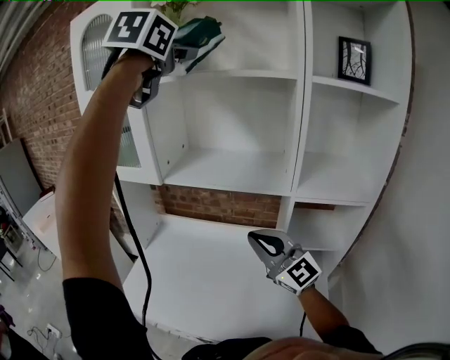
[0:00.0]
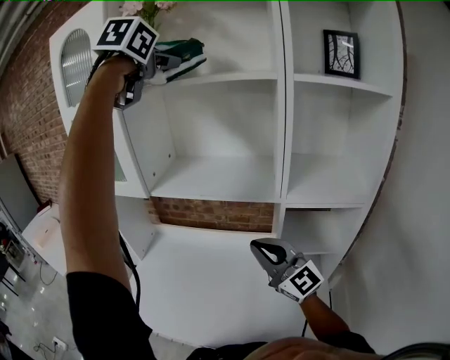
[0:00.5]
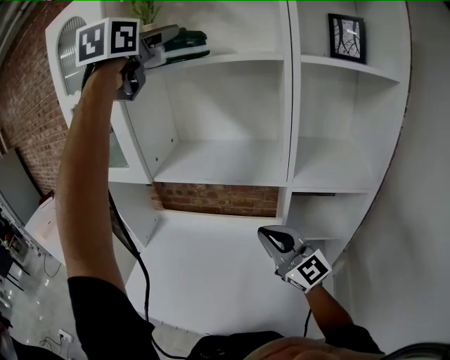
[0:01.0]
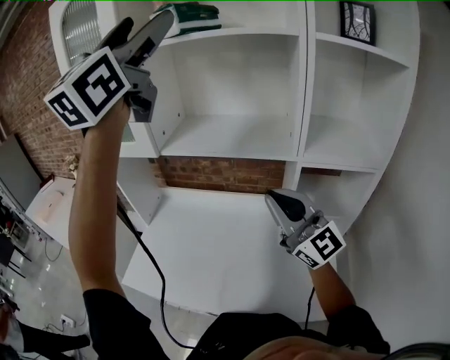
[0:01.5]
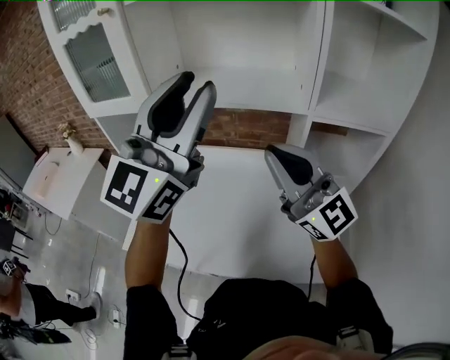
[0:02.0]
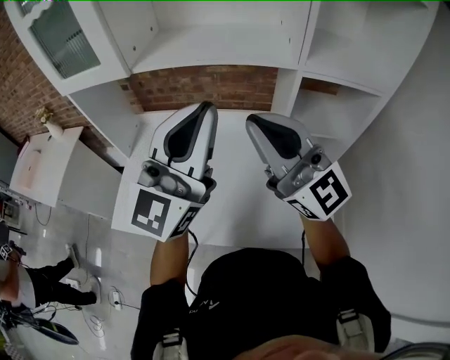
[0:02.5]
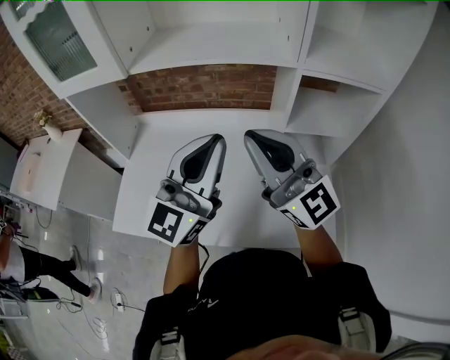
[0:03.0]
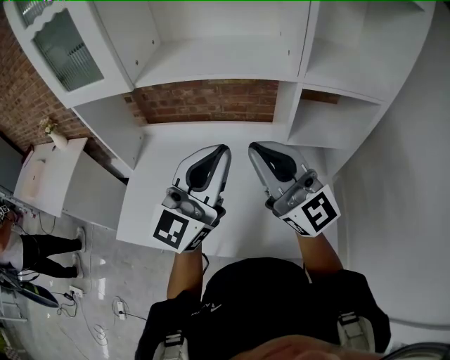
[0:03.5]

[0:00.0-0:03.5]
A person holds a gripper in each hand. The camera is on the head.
0:00.0 to 0:02.0: The right gripper travels upward by about 5 cm; the left gripper goes some 25 cm downward and backward, points its fingers some 40 degrees further upward, and opens and closes again.
0:02.0 to 0:03.5: The right gripper moves downward, roughly 5 cm. Meanwhile the left gripper shifts approximately 20 cm downward.

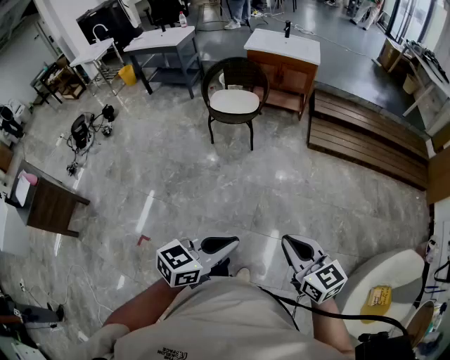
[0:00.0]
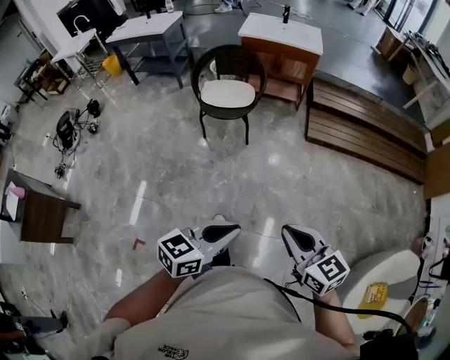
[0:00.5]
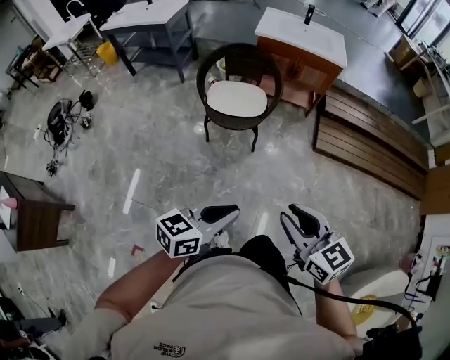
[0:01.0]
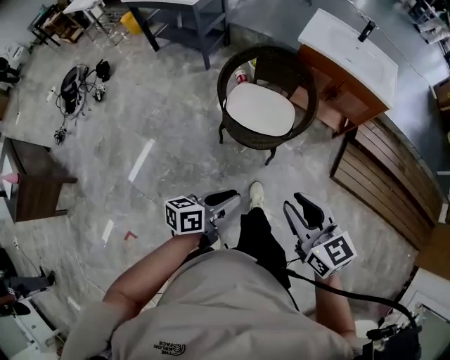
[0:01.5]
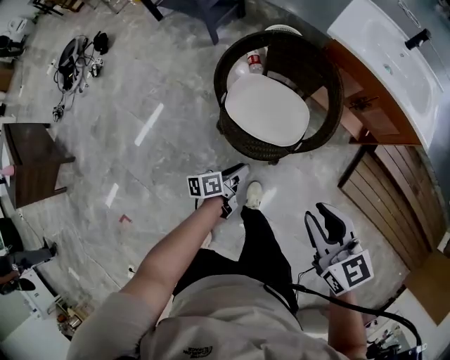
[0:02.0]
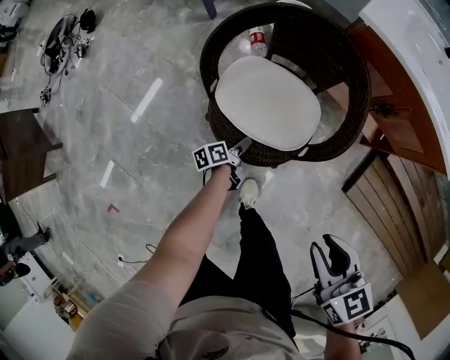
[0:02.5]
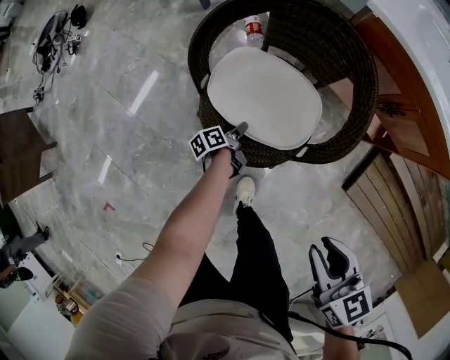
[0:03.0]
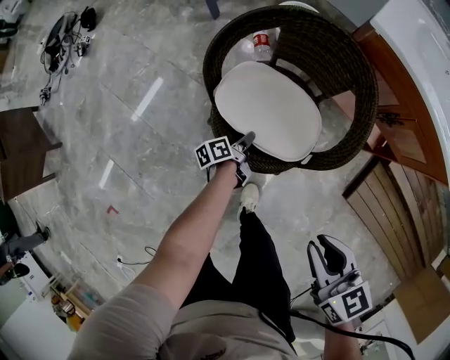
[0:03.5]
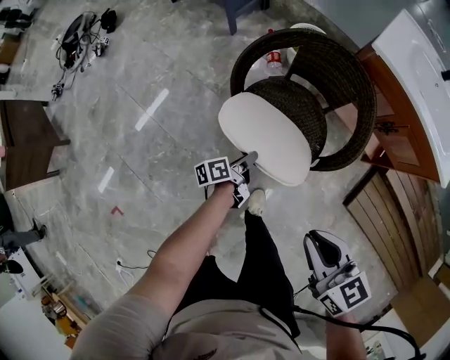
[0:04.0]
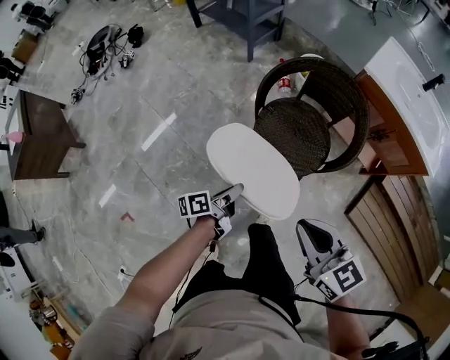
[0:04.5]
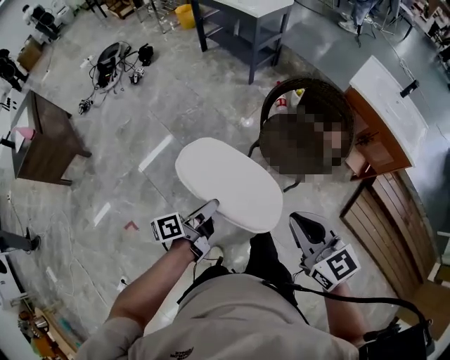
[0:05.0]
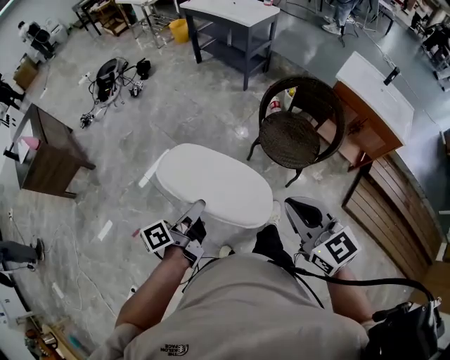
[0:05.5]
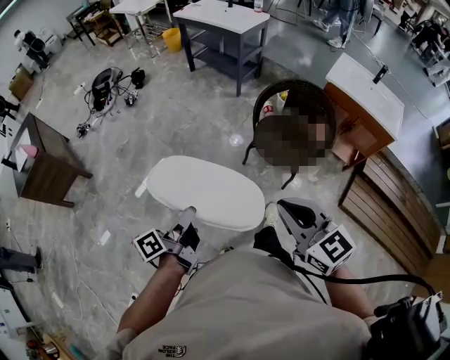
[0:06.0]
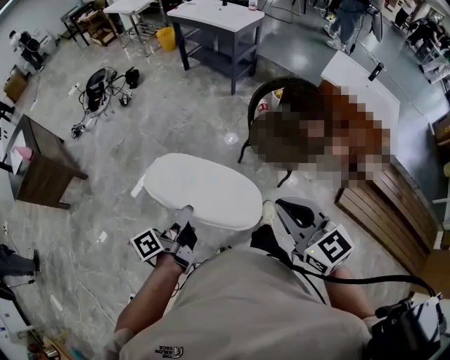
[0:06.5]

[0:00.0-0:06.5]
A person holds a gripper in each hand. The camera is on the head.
0:00.0 to 0:02.0: The pair of grippers is taken forward, some 90 cm. The left gripper shifts about 40 cm downward, rolls counterclockwise, seen from behind, by approximately 60 degrees, and opens up, while the right gripper rotates roughly 20 degrees, and opens its fingers.
0:02.0 to 0:04.5: The right gripper goes approximately 15 cm to the left, and closes. The left gripper moves to the left and backward, some 15 cm, and travels downward and back again, some 25 cm each way.
0:04.5 to 0:06.5: The right gripper goes about 30 cm backward, to the left and upward. The left gripper shifts about 40 cm to the left, upward and backward, and swivels about 20 degrees.

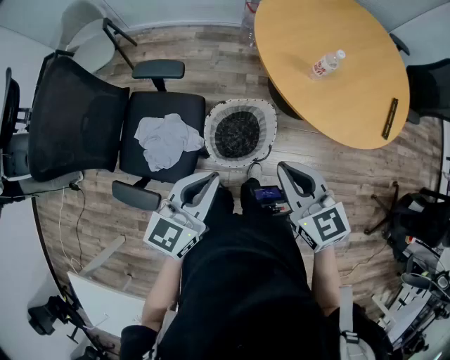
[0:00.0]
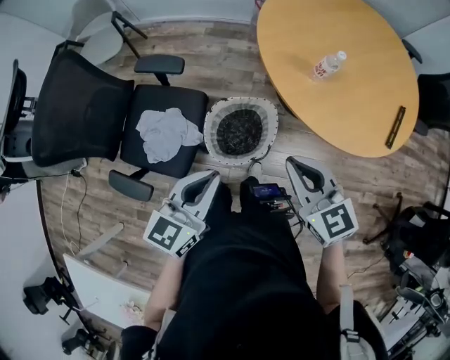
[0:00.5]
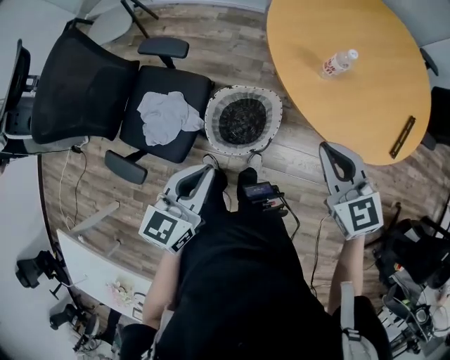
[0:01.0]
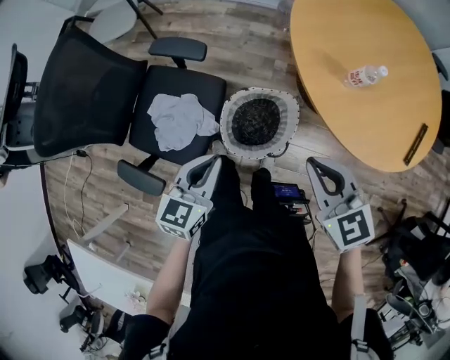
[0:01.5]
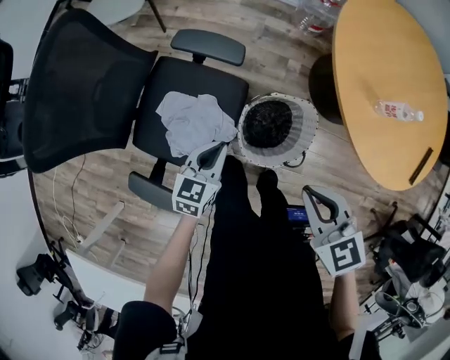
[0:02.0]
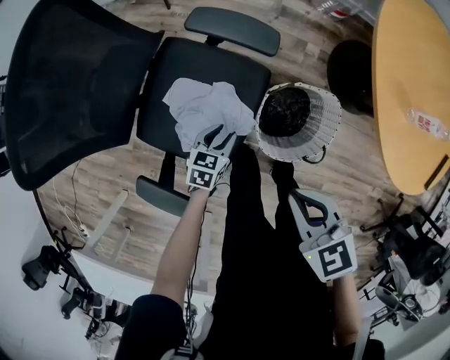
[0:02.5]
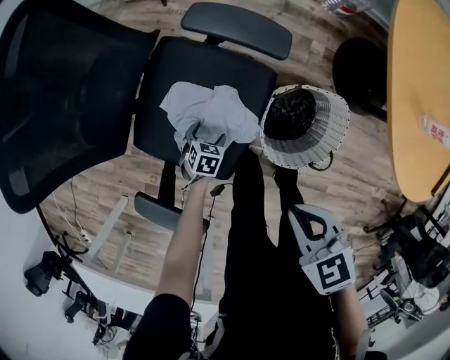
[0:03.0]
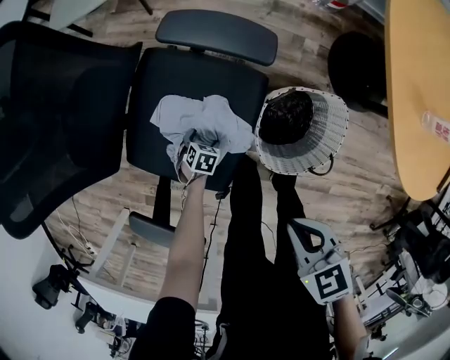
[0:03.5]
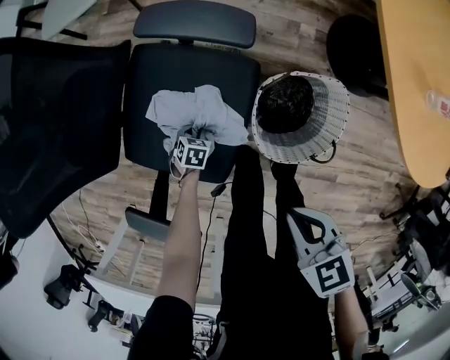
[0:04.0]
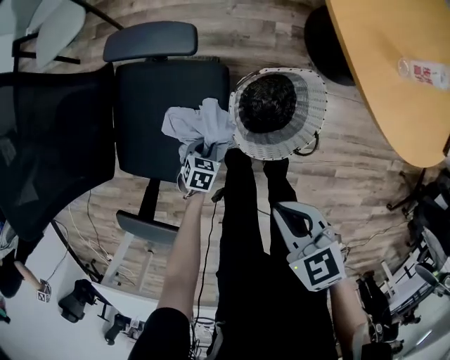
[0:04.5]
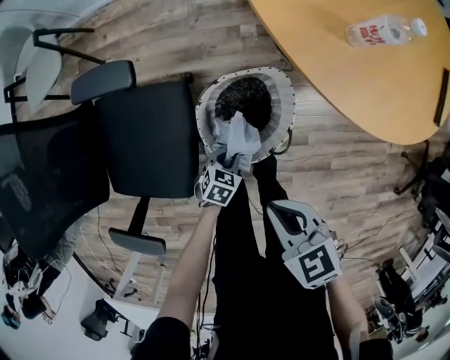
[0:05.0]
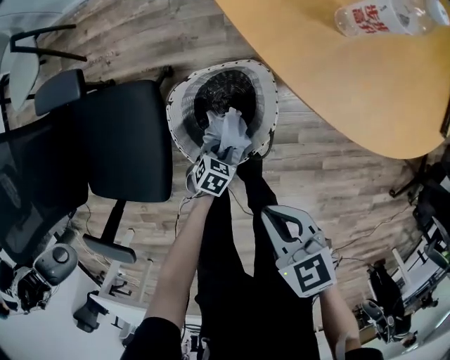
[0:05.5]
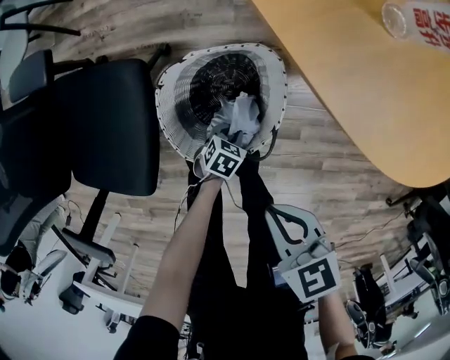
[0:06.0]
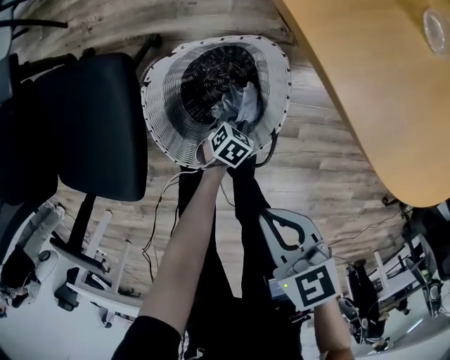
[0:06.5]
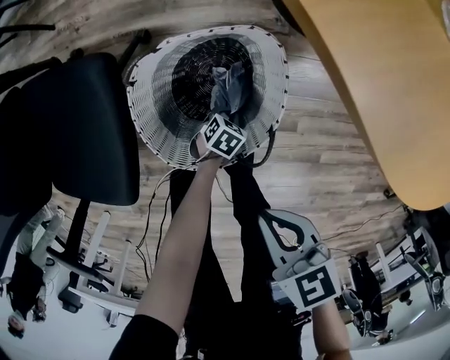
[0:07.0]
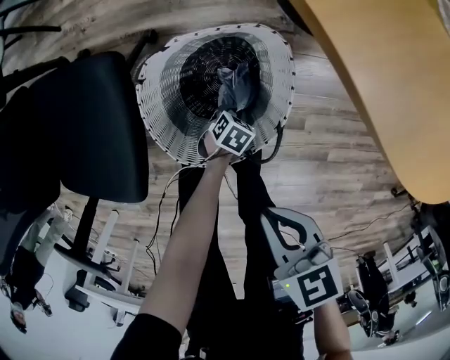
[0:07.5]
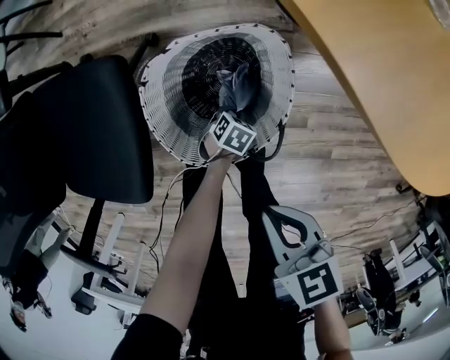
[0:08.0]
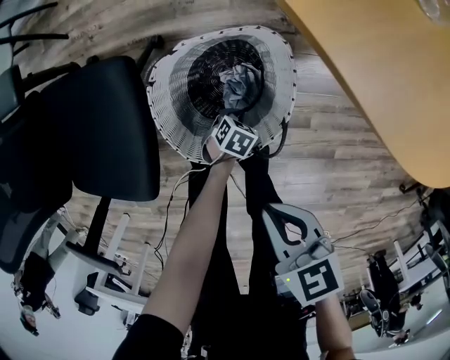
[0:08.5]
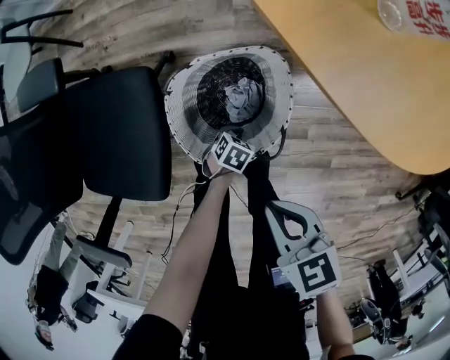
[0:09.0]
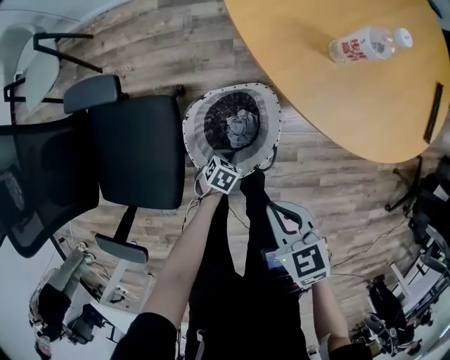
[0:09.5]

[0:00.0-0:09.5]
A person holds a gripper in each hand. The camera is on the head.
0:00.0 to 0:02.0: The left gripper travels downward, to the left and forward by about 30 cm, and rotates about 20 degrees. The right gripper goes roughly 15 cm to the left, forward and downward.
0:02.0 to 0:04.0: The right gripper heads downward, covering about 20 cm, and changes its angle by some 20 degrees. Meanwhile the left gripper shifts roughly 40 cm downward, tilts its fingers some 40 degrees downward, and opens, then closes again.
0:04.0 to 0:05.5: The right gripper moves approximately 20 cm. Meanwhile the left gripper travels upward and back again, about 10 cm each way, and turns by roughly 30 degrees.
0:05.5 to 0:07.5: The left gripper shifts about 20 cm downward, while the right gripper heads downward, covering roughly 10 cm.
0:07.5 to 0:09.5: The right gripper travels upward by about 15 cm. Meanwhile the left gripper travels upward by about 20 cm.

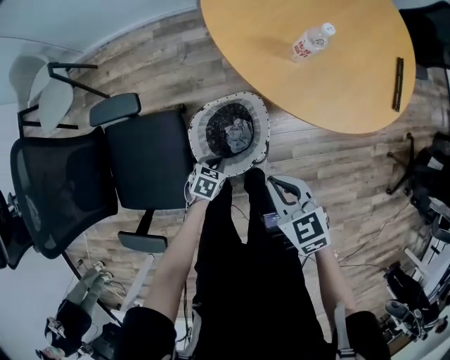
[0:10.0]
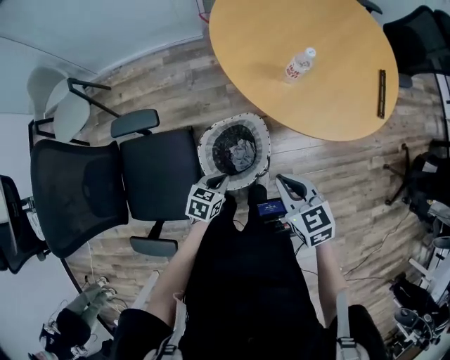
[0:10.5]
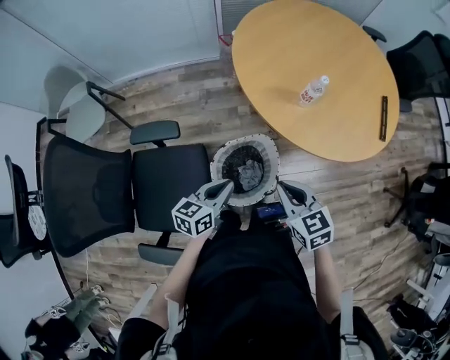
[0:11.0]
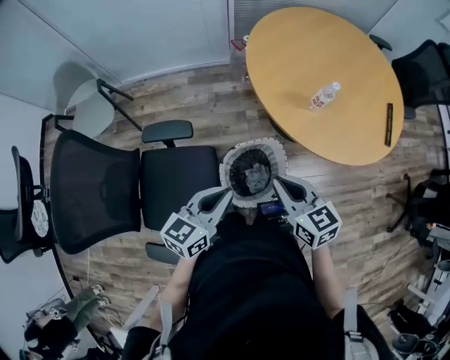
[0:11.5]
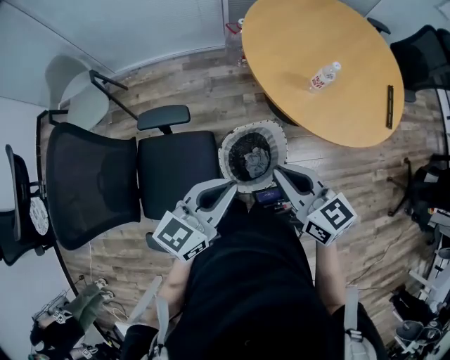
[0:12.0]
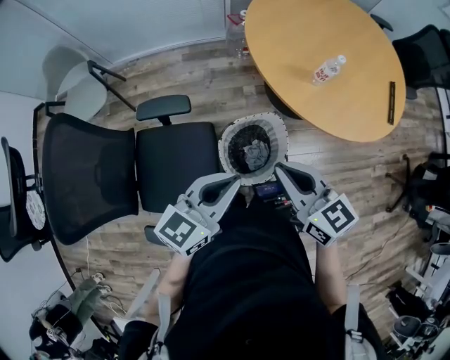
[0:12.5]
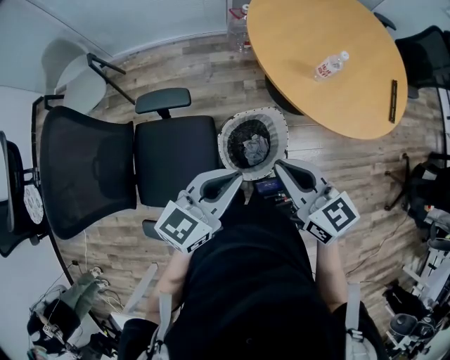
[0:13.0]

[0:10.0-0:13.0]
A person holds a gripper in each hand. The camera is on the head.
0:10.0 to 0:11.5: The left gripper moves upward, approximately 35 cm, and angles its fingers upward, by about 50 degrees, while the right gripper heads upward and to the left, covering roughly 15 cm, and rotates roughly 20 degrees.
0:11.5 to 0:13.0: The right gripper ends up about 5 cm from where it was.

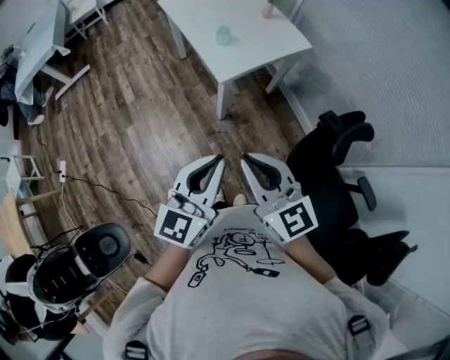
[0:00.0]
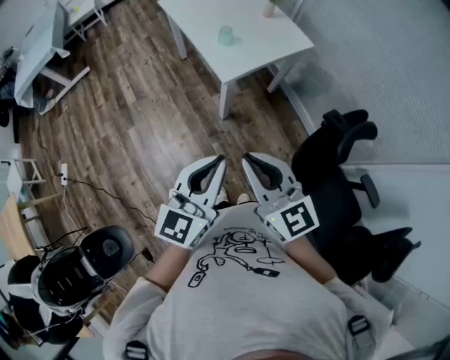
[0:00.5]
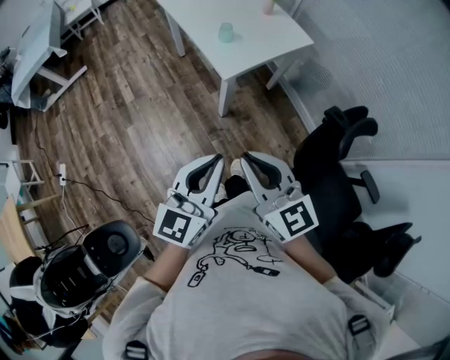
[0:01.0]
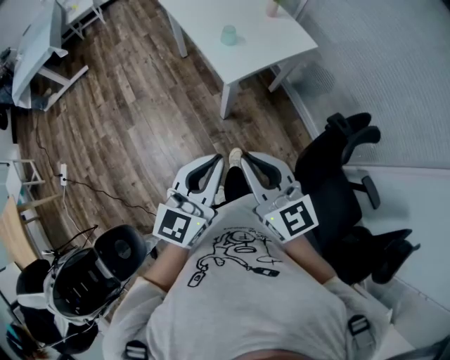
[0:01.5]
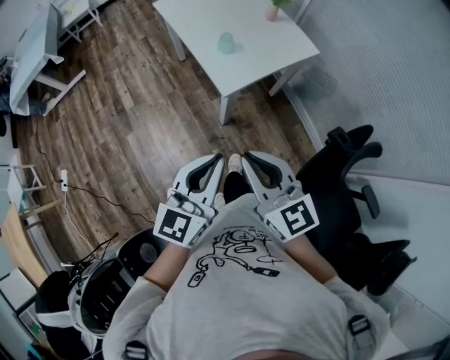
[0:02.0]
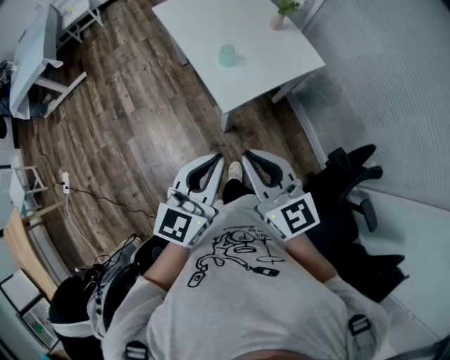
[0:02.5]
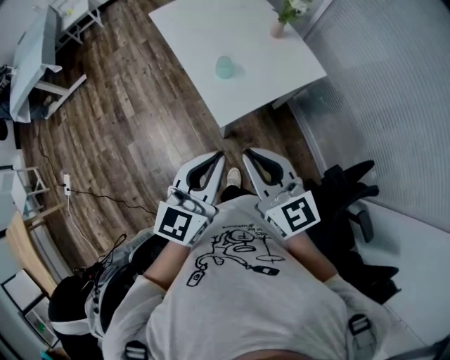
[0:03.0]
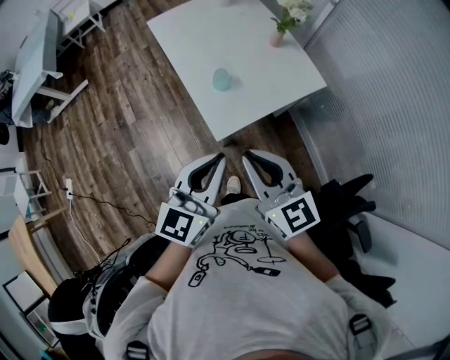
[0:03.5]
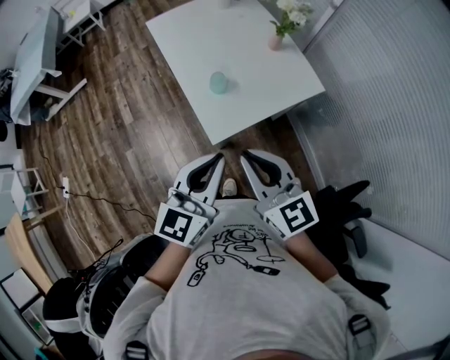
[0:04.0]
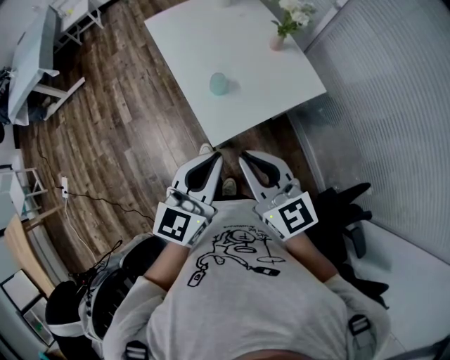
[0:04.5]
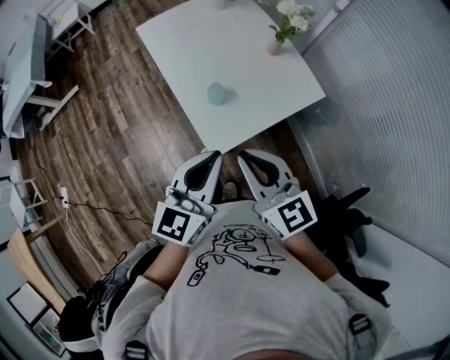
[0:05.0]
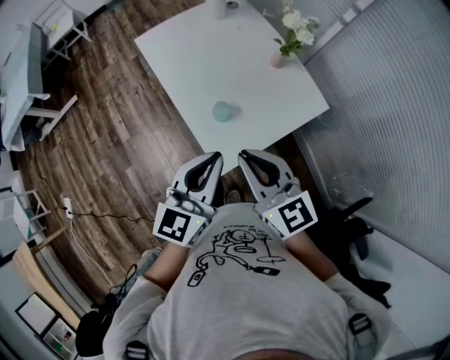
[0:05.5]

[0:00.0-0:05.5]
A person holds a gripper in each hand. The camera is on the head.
0:00.0 to 0:02.0: The grippers both shift forward by some 10 cm.
0:02.0 to 0:03.5: Both grippers move forward, roughly 20 cm.
0:03.5 to 0:05.5: Both grippers move forward, roughly 15 cm.
